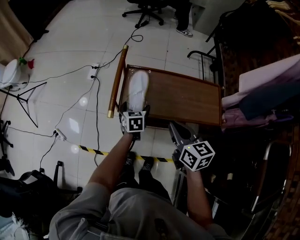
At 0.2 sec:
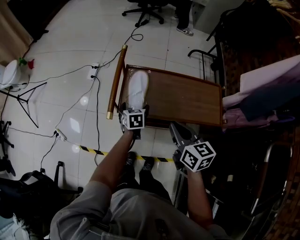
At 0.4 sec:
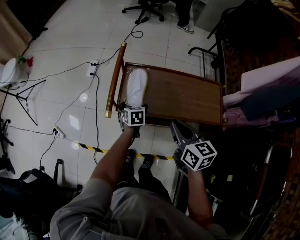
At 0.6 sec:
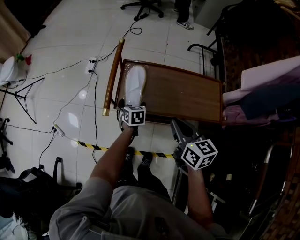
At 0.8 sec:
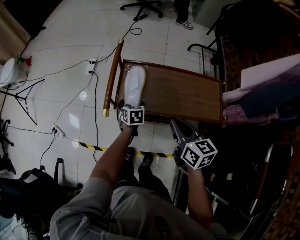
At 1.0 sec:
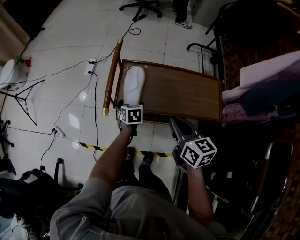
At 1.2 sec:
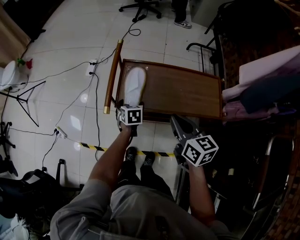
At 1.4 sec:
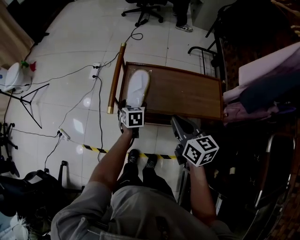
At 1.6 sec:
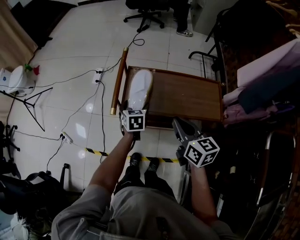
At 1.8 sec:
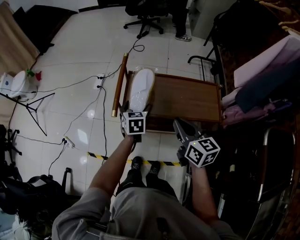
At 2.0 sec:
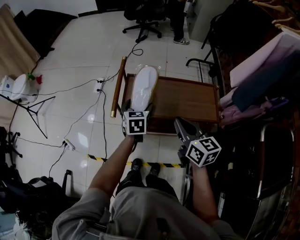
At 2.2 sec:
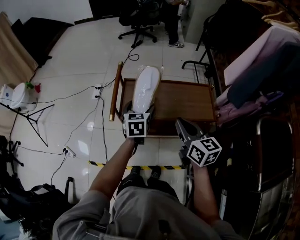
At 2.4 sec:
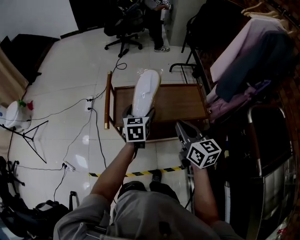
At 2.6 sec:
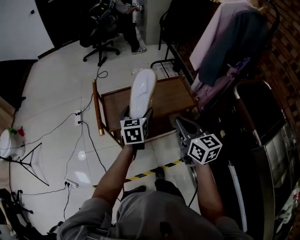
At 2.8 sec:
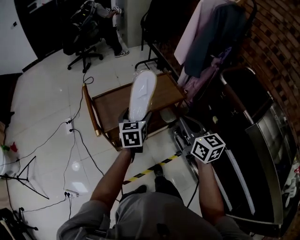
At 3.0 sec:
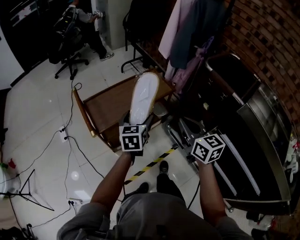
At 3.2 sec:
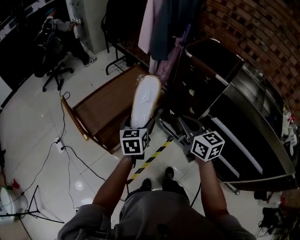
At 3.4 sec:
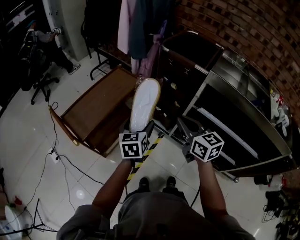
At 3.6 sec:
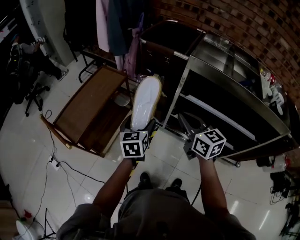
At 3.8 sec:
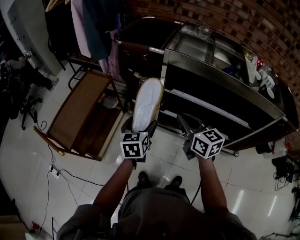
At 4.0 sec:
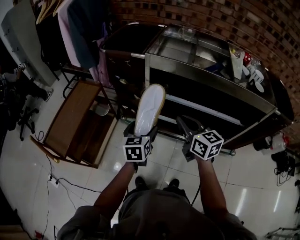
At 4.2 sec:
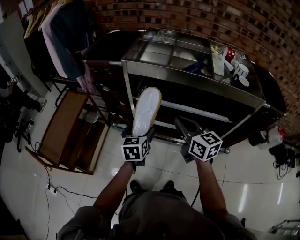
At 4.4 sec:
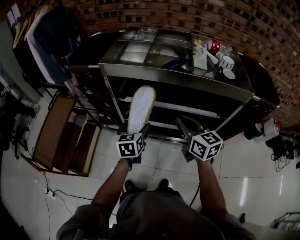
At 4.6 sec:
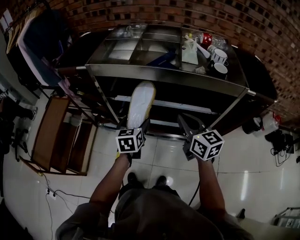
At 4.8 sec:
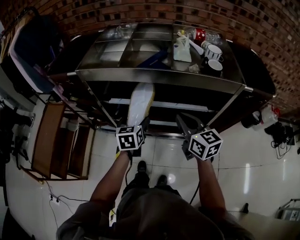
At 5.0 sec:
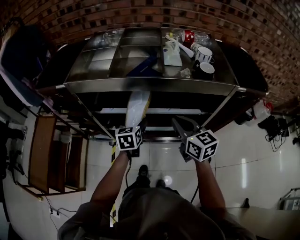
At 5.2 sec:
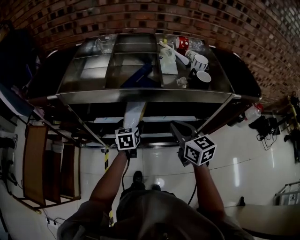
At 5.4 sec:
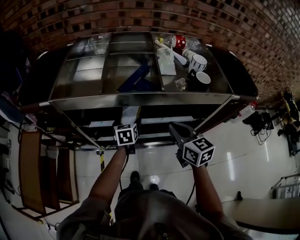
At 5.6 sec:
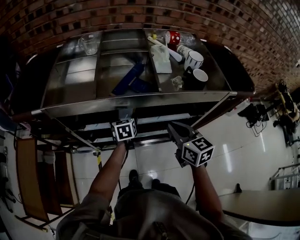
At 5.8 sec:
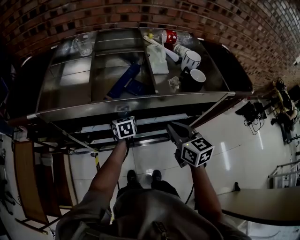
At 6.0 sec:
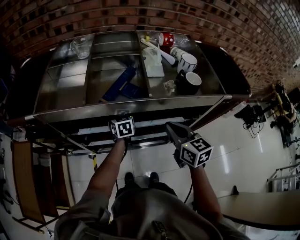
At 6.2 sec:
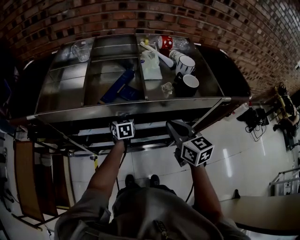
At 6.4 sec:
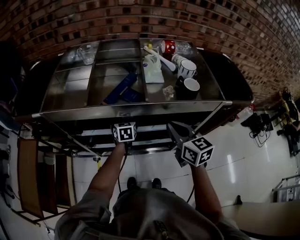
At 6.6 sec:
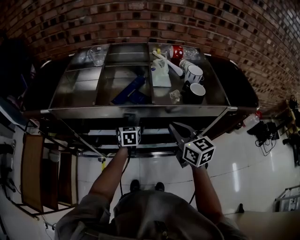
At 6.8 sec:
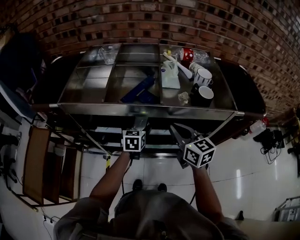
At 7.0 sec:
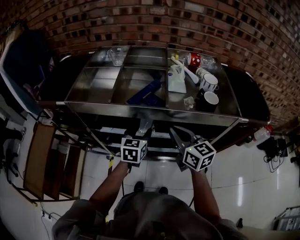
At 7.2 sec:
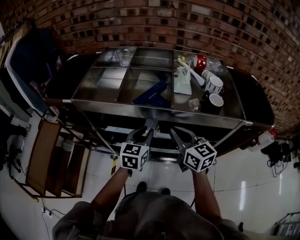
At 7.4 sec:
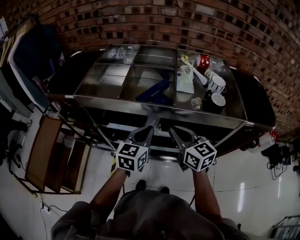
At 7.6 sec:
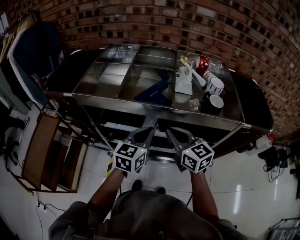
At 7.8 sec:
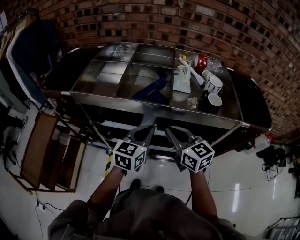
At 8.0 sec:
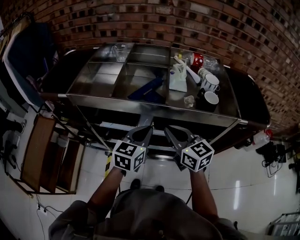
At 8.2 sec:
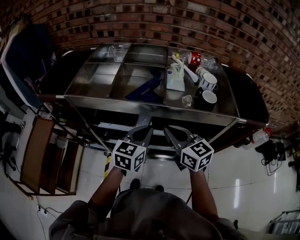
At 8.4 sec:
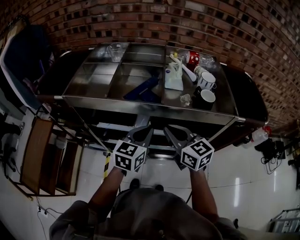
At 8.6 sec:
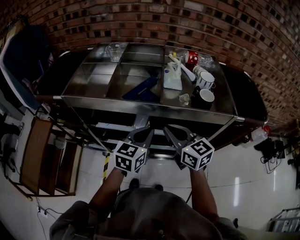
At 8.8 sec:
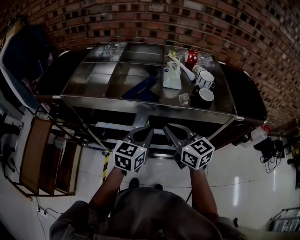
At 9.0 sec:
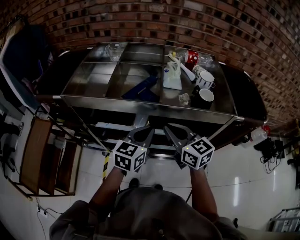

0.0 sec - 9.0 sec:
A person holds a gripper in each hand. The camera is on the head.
0.0 sec - 1.6 sec: The left gripper ends up roughly 5 cm from where it was.
1.6 sec - 3.0 sec: The right gripper moves some 25 cm, and rotates approximately 40 degrees. Meanwhile the left gripper changes place by roughly 25 cm, and swivels approximately 50 degrees.
3.0 sec - 4.4 sec: Both grippers are carried roughly 50 cm. The left gripper swivels approximately 40 degrees. Meanwhile the right gripper turns by approximately 40 degrees.
4.4 sec - 6.0 sec: The left gripper shifts approximately 30 cm forward, to the right and downward, while the right gripper travels to the right and forward by some 15 cm, and rotates about 20 degrees.
6.0 sec - 7.6 sec: The right gripper travels to the left by about 5 cm, and changes its angle by about 20 degrees; the left gripper heads upward and backward, covering approximately 25 cm, turns by approximately 30 degrees, and closes its fingers.
7.6 sec - 9.0 sec: The grippers stay close to where they were, moving slightly.

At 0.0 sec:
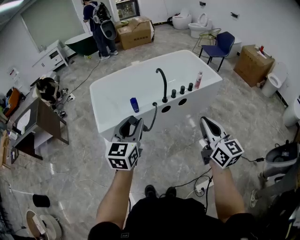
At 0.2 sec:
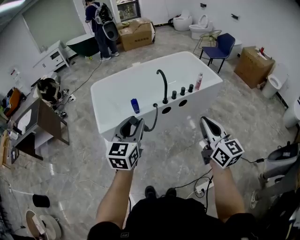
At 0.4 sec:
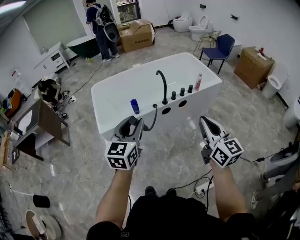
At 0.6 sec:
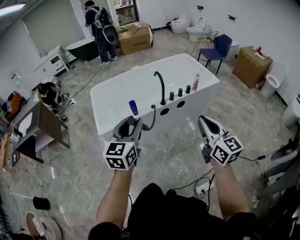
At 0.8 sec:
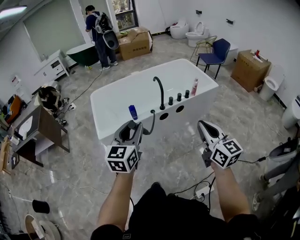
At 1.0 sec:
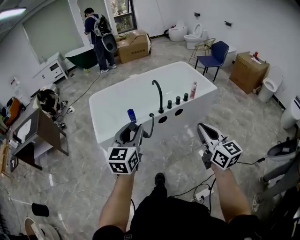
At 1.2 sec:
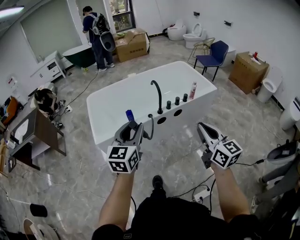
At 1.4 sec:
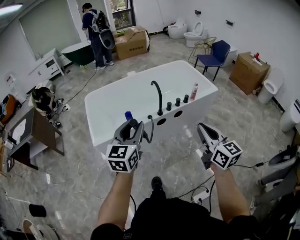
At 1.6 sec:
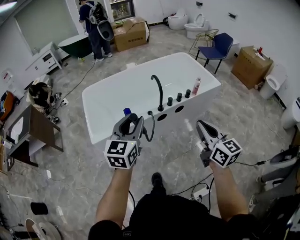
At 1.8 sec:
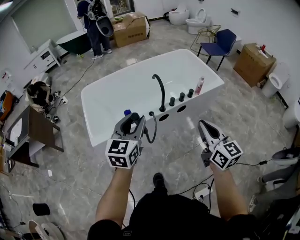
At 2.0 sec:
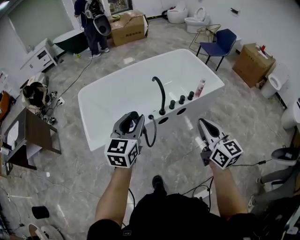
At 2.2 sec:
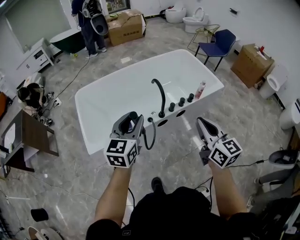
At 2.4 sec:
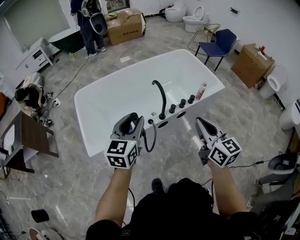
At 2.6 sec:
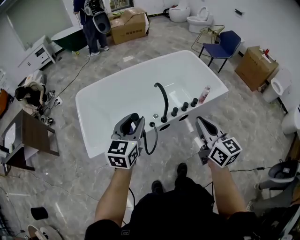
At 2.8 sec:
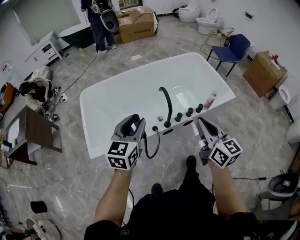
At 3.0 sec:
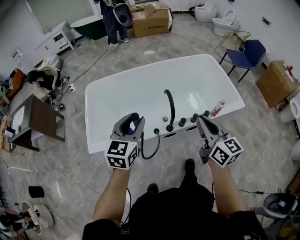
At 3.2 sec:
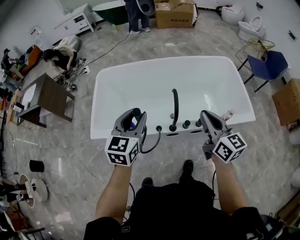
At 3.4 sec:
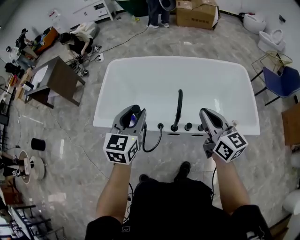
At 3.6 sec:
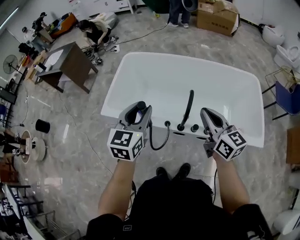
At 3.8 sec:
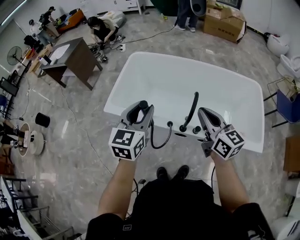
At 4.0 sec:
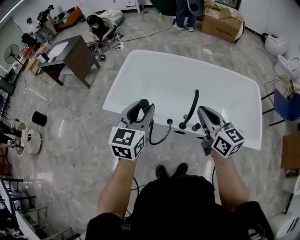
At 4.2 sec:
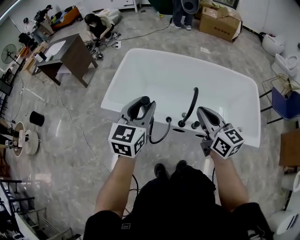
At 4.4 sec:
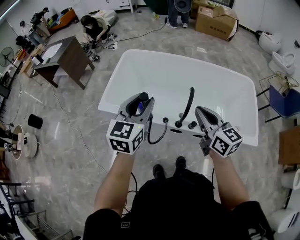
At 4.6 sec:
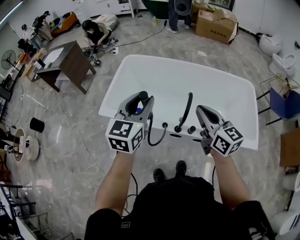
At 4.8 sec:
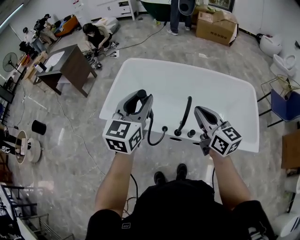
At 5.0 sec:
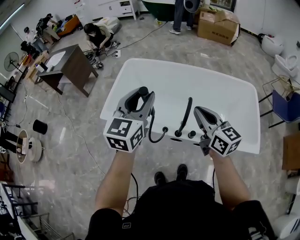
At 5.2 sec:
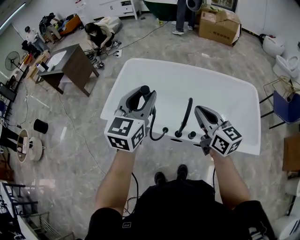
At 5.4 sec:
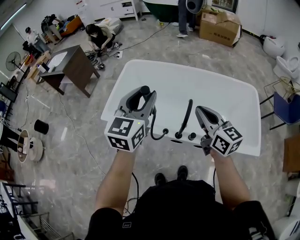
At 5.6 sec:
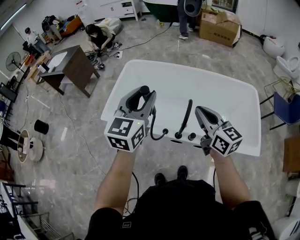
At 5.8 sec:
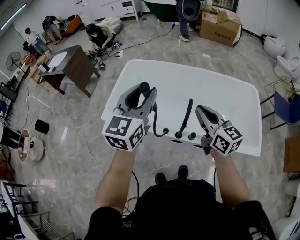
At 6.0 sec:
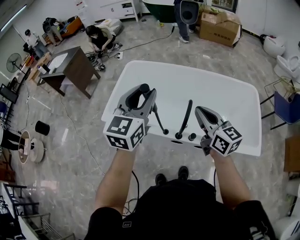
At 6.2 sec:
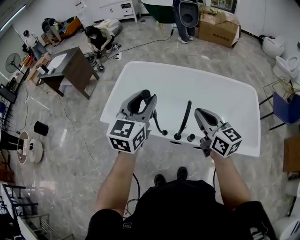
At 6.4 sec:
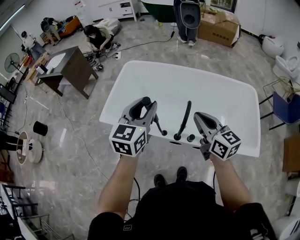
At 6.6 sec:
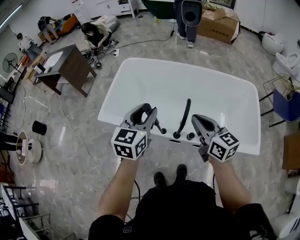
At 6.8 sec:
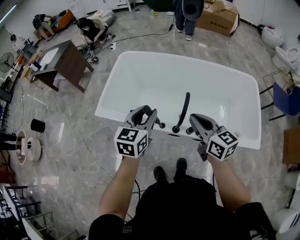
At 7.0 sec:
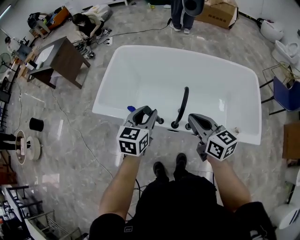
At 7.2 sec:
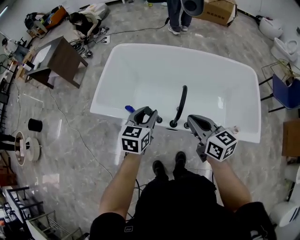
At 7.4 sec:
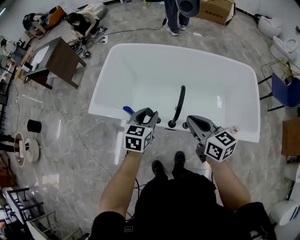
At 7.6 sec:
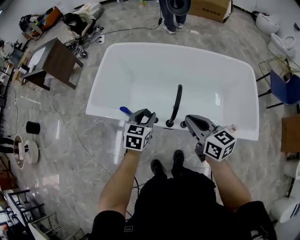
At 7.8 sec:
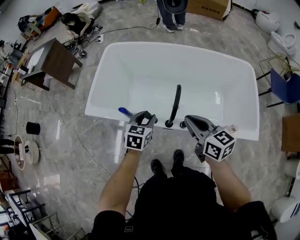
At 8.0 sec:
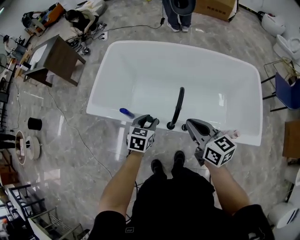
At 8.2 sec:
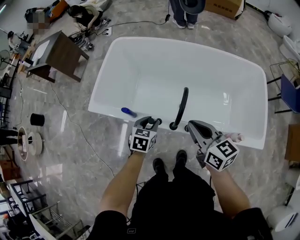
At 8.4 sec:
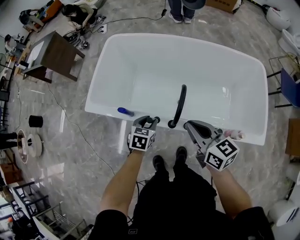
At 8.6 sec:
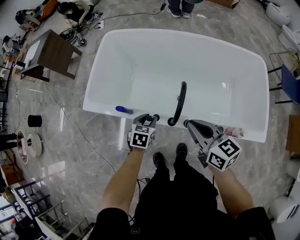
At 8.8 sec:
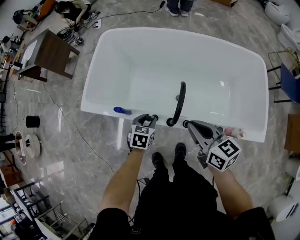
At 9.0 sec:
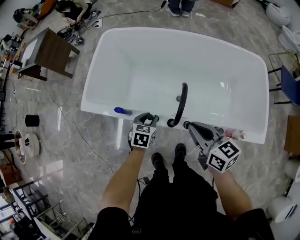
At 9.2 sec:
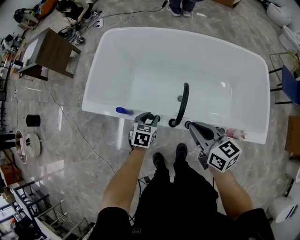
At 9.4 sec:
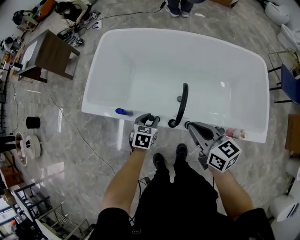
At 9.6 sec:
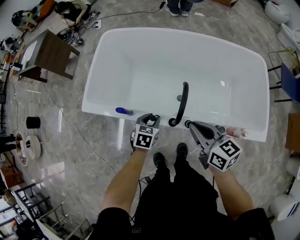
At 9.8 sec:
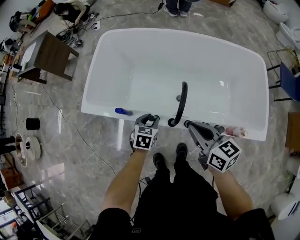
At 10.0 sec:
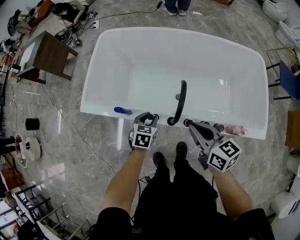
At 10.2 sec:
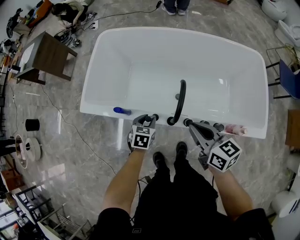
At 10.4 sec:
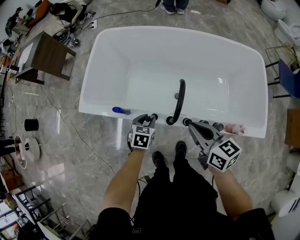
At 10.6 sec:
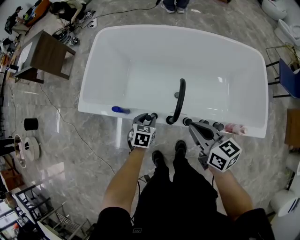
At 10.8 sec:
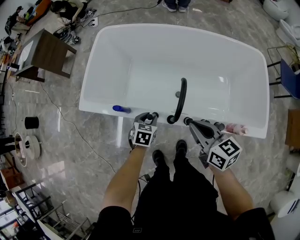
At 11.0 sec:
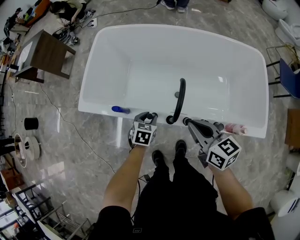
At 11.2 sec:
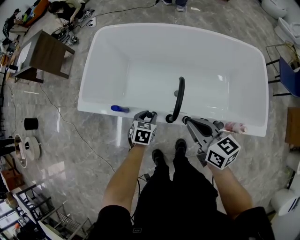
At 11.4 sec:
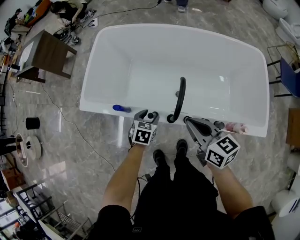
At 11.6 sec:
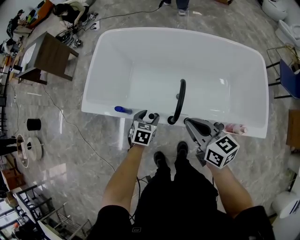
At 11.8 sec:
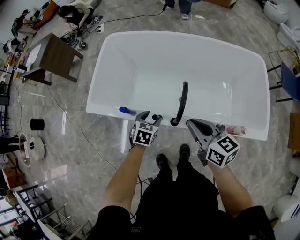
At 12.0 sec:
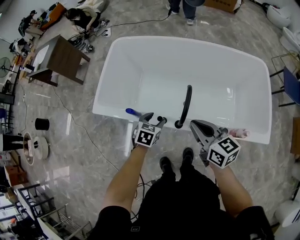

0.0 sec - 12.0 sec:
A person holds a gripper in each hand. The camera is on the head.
0.0 sec - 1.6 sec: The two grippers go roughly 10 cm forward.
1.6 sec - 3.0 sec: Both grippers travel together forward, about 25 cm.
3.0 sec - 4.4 sec: The left gripper turns by some 30 degrees. Meanwhile the right gripper shifts by approximately 10 cm, and changes its angle by approximately 30 degrees.
4.4 sec - 6.0 sec: The right gripper heads forward, covering roughly 5 cm, while the left gripper goes about 10 cm upward.
6.0 sec - 7.6 sec: The right gripper goes approximately 10 cm downward. Meanwhile the left gripper goes roughly 30 cm downward, and angles its fingers downward, by about 30 degrees.
7.6 sec - 9.0 sec: The left gripper moves downward, approximately 15 cm, while the right gripper shifts approximately 5 cm downward.
9.0 sec - 10.4 sec: There are only small adjustments of the grippers.
10.4 sec - 12.0 sec: The left gripper shifts roughly 5 cm upward, and opens its fingers.

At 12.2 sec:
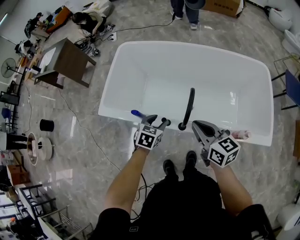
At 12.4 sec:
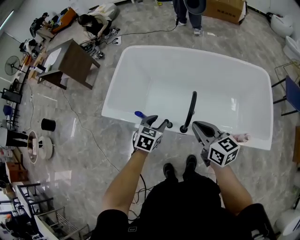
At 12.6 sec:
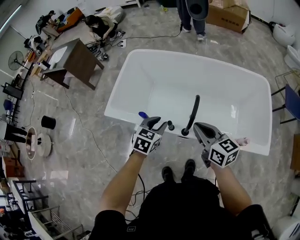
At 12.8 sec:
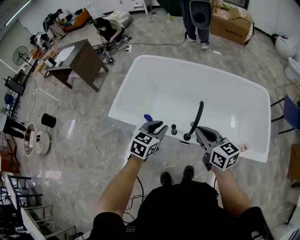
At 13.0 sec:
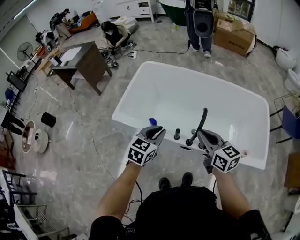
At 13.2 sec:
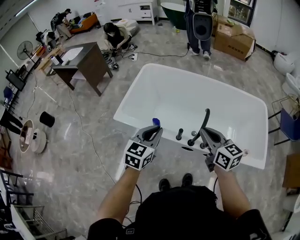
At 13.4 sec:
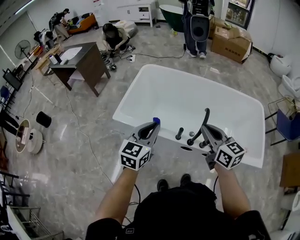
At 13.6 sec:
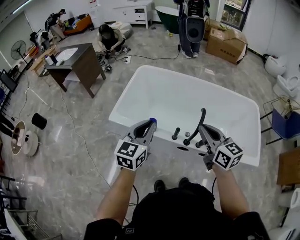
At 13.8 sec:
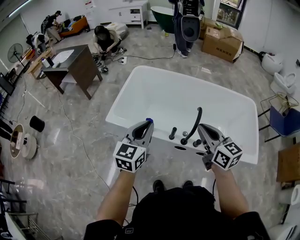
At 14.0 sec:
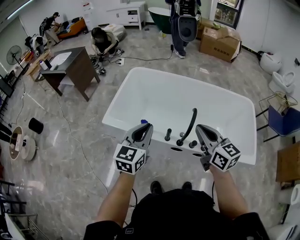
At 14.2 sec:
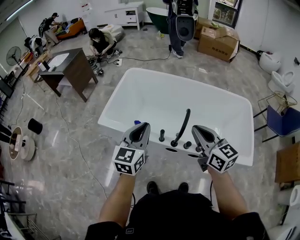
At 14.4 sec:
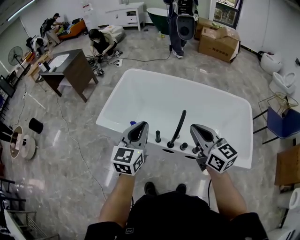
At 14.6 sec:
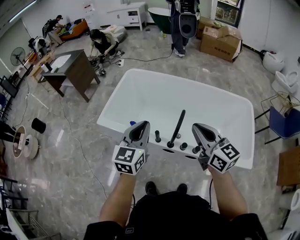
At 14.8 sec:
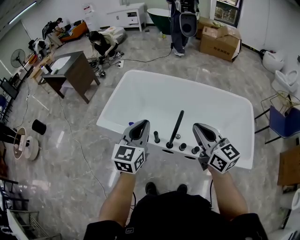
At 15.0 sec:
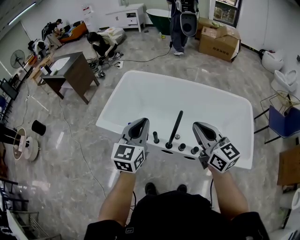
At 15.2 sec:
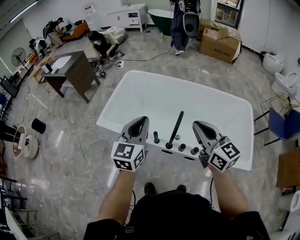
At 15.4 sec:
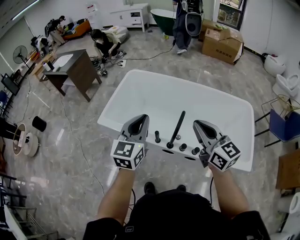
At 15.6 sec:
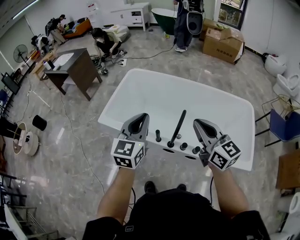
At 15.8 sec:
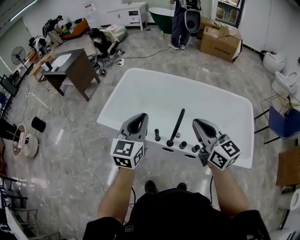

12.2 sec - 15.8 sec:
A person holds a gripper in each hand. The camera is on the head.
12.2 sec - 14.0 sec: The left gripper heads upward, covering approximately 25 cm, tilts its fingers approximately 40 degrees upward, and closes up. The right gripper travels upward by approximately 15 cm.
14.0 sec - 15.8 sec: Both grippers travel together to the right, approximately 5 cm.
